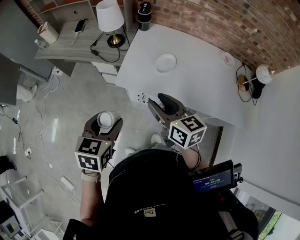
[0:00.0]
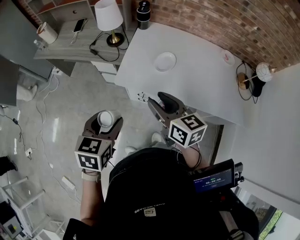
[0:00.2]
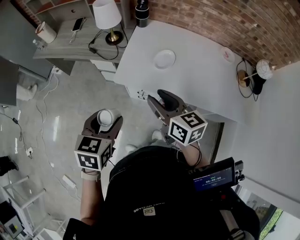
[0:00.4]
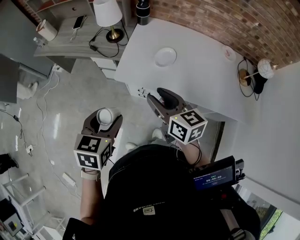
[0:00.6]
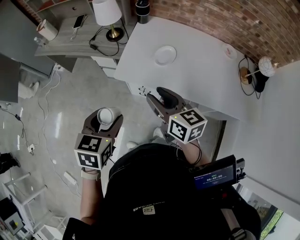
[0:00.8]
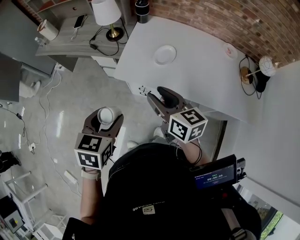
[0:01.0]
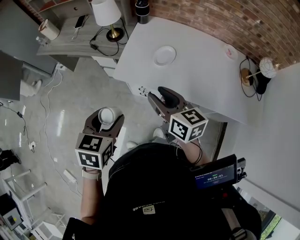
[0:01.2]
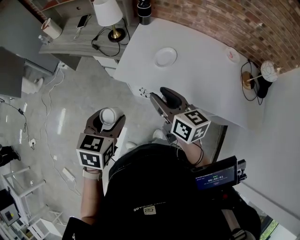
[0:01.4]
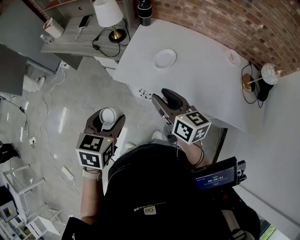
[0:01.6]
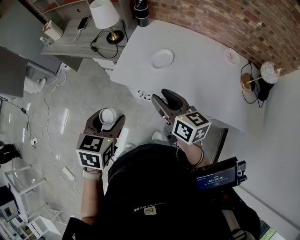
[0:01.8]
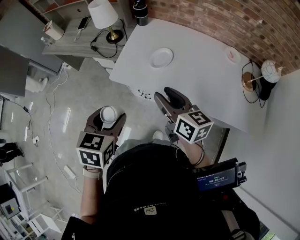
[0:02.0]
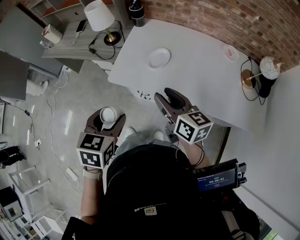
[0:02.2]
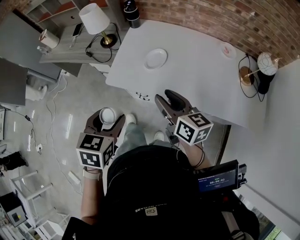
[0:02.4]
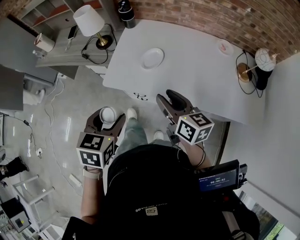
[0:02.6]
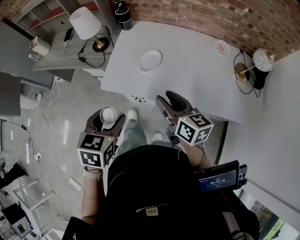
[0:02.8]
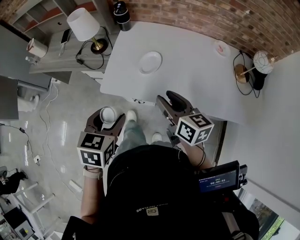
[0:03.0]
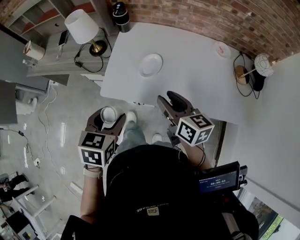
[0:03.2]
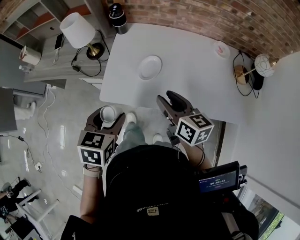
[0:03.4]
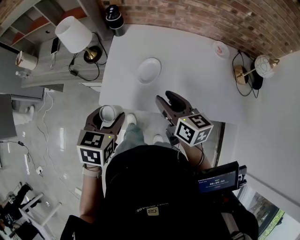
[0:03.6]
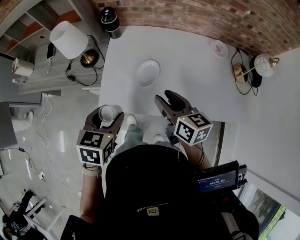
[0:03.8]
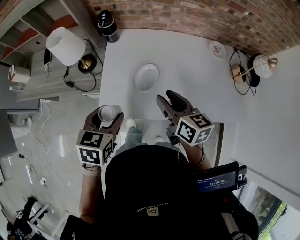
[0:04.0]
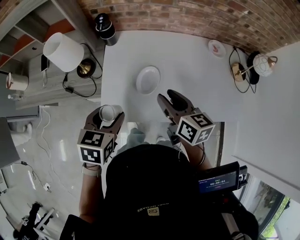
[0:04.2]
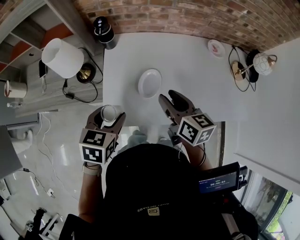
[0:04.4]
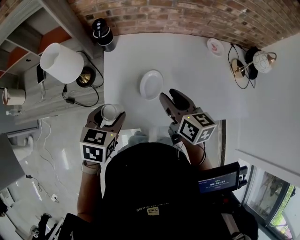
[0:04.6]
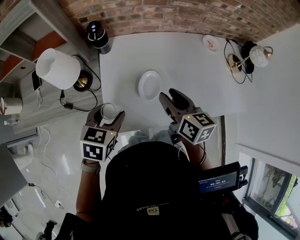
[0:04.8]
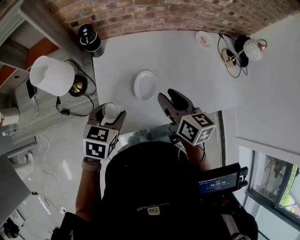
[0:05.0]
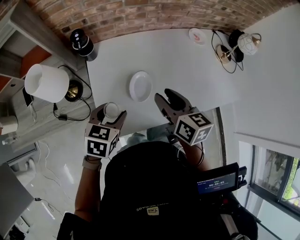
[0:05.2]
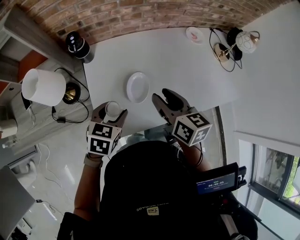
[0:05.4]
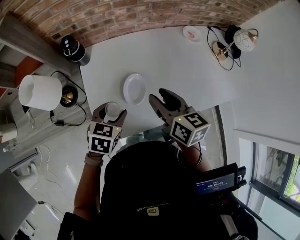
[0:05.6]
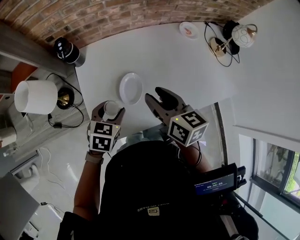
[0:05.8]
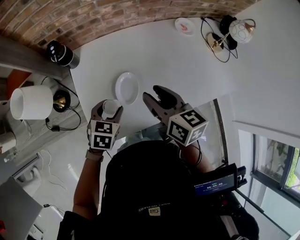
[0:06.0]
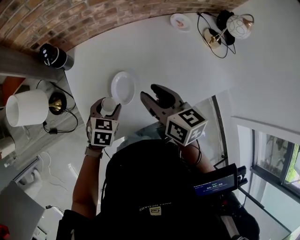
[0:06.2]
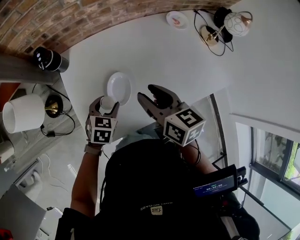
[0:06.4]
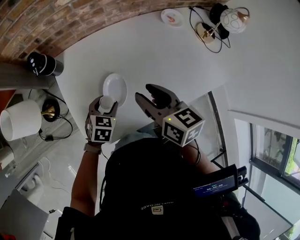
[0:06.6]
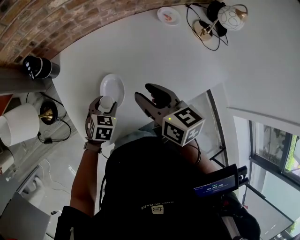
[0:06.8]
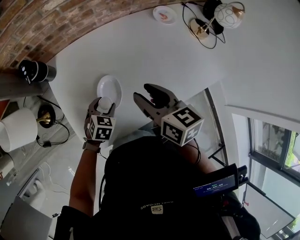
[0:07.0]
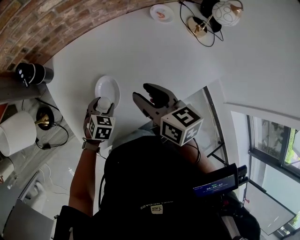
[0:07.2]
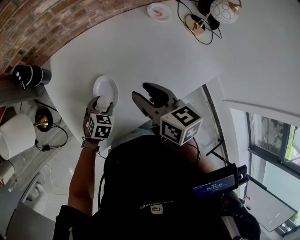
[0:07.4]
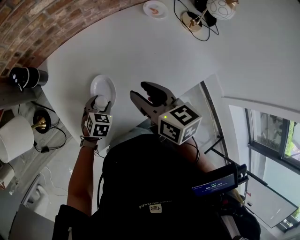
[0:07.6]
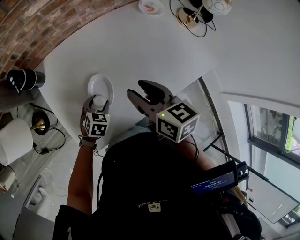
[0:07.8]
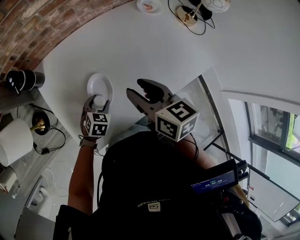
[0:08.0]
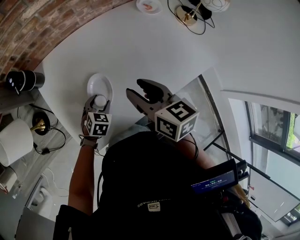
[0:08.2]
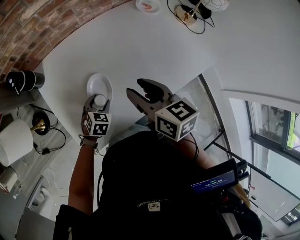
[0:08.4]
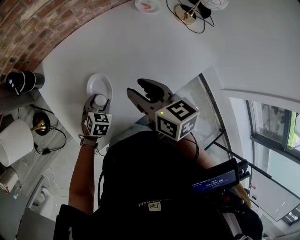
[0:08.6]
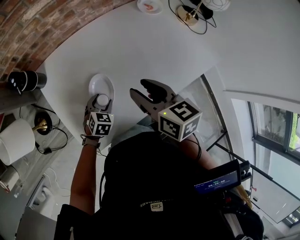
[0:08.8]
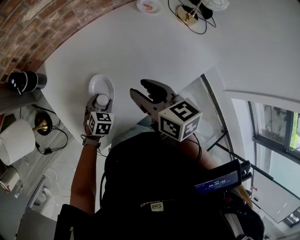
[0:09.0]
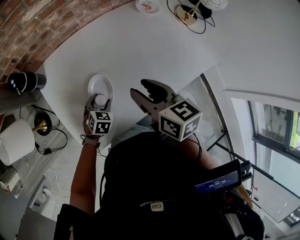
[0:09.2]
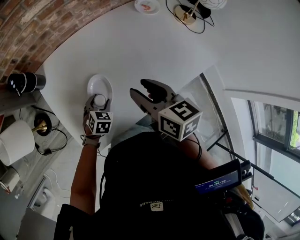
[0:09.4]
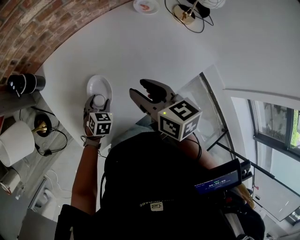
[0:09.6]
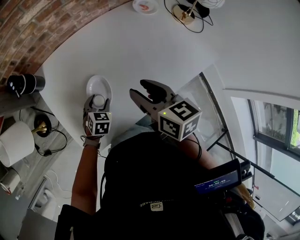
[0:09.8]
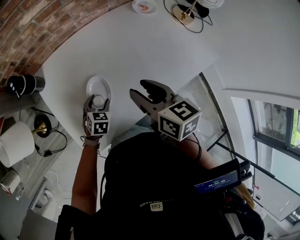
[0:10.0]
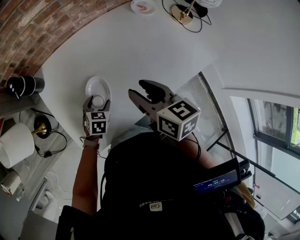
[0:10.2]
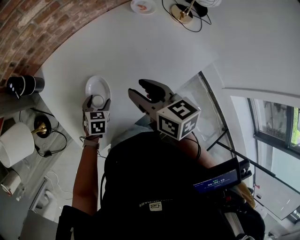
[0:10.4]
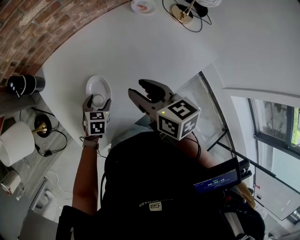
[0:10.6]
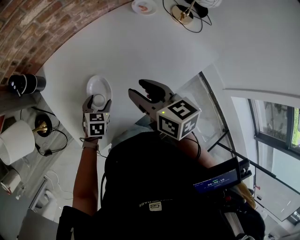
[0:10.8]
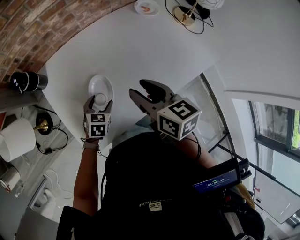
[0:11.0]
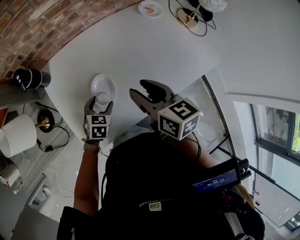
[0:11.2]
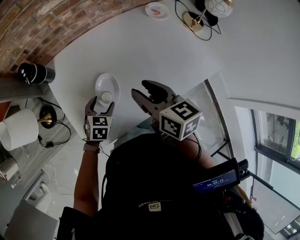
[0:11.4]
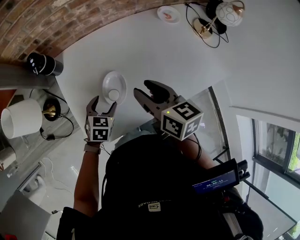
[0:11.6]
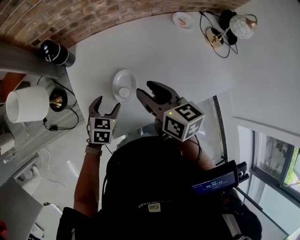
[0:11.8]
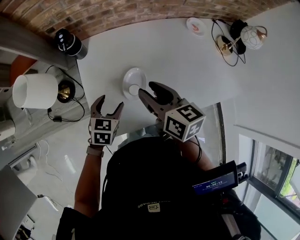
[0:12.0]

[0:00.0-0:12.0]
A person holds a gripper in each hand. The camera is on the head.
0:00.0 to 0:01.6: Both grippers travel together to the right, roughly 5 cm.
0:01.6 to 0:03.0: The right gripper moves to the right, some 10 cm, while the left gripper heads forward and to the right, covering approximately 10 cm.
0:03.0 to 0:04.4: The grippers both shift forward by roughly 15 cm.
0:04.4 to 0:06.0: The left gripper shifts about 15 cm downward, forward and to the right, and rotates about 20 degrees.
0:06.0 to 0:07.6: The left gripper moves downward, some 15 cm; the right gripper changes place by roughly 5 cm.
0:07.6 to 0:10.4: There are only small adjustments of the grippers.
0:10.4 to 0:12.0: The left gripper moves upward and to the left, approximately 15 cm. The right gripper goes approximately 10 cm to the left.

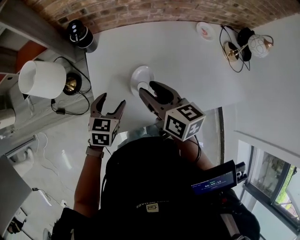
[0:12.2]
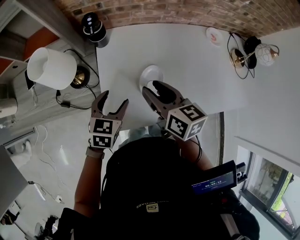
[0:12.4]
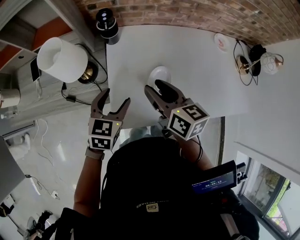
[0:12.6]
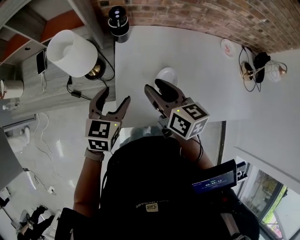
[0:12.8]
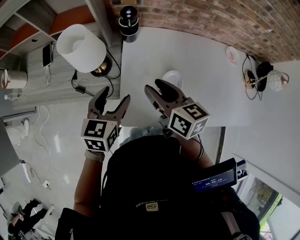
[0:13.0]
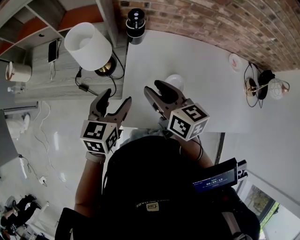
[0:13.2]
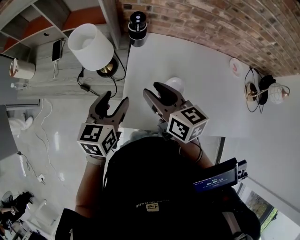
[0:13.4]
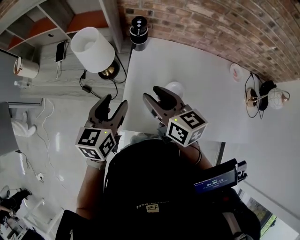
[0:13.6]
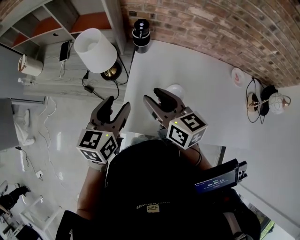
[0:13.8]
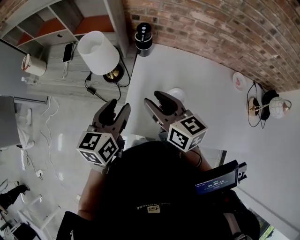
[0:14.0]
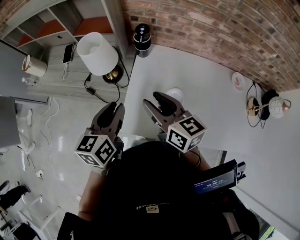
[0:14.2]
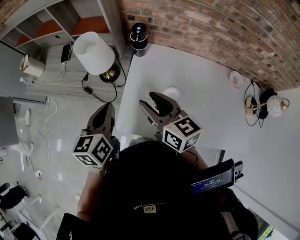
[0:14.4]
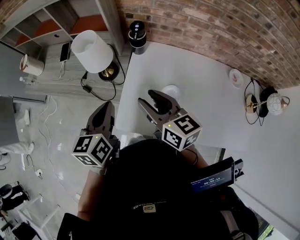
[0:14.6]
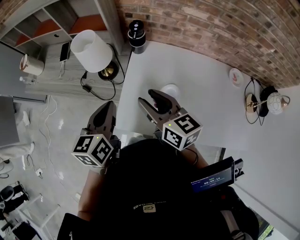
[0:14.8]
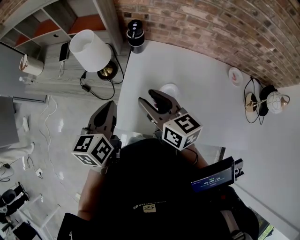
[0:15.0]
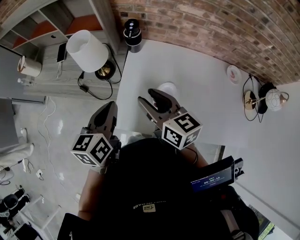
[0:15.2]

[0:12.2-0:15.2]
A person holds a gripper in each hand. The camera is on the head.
0:12.2 to 0:13.8: The right gripper shifts approximately 15 cm to the left and upward, and swivels some 30 degrees. Meanwhile the left gripper goes some 20 cm upward and to the left, and swivels roughly 40 degrees.
0:13.8 to 0:15.2: The left gripper closes its fingers.

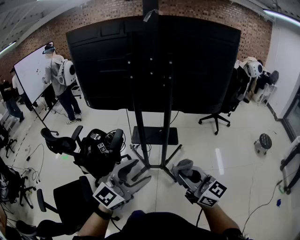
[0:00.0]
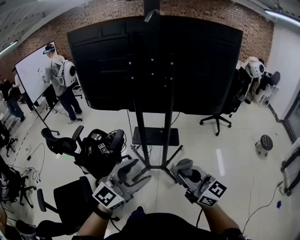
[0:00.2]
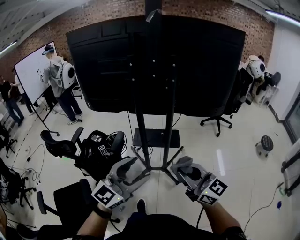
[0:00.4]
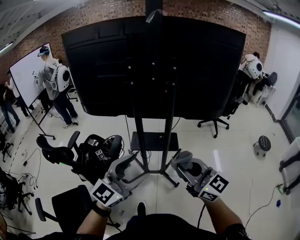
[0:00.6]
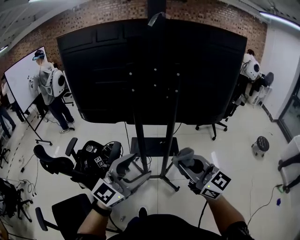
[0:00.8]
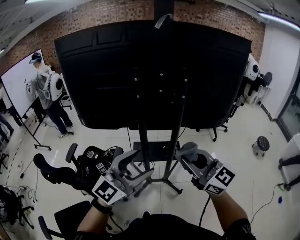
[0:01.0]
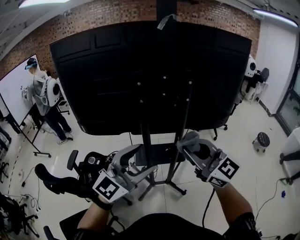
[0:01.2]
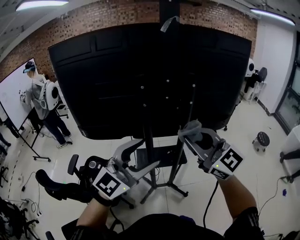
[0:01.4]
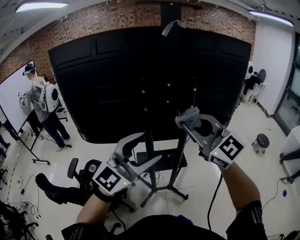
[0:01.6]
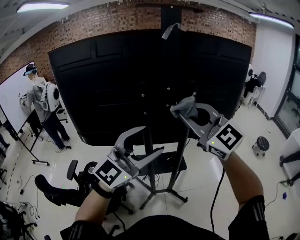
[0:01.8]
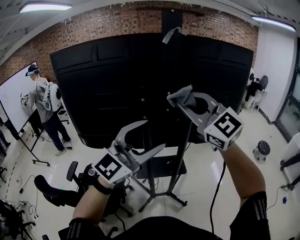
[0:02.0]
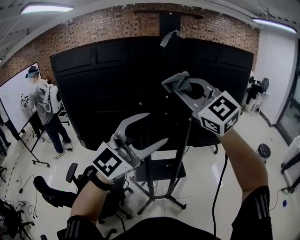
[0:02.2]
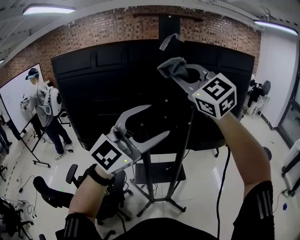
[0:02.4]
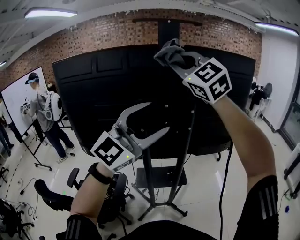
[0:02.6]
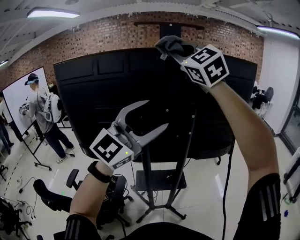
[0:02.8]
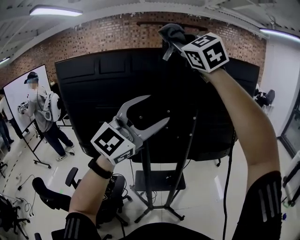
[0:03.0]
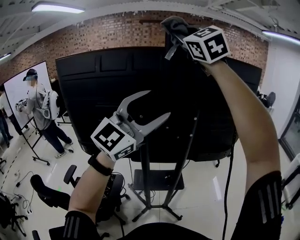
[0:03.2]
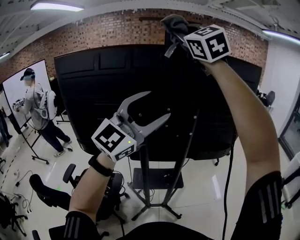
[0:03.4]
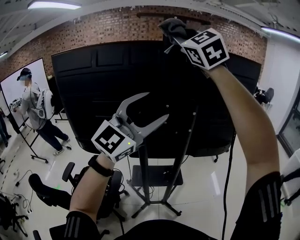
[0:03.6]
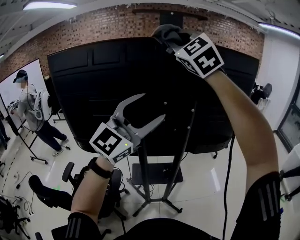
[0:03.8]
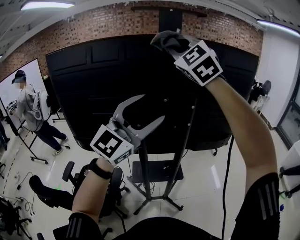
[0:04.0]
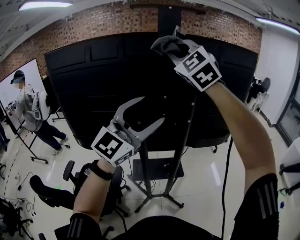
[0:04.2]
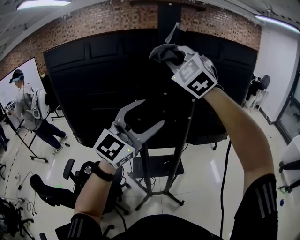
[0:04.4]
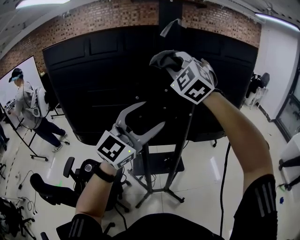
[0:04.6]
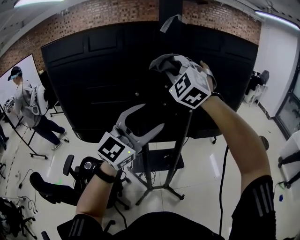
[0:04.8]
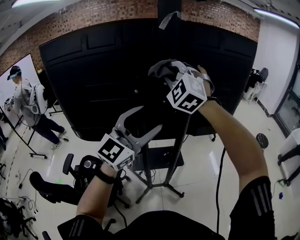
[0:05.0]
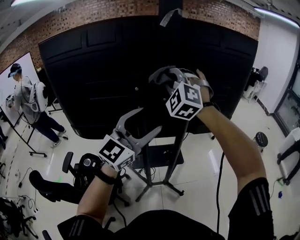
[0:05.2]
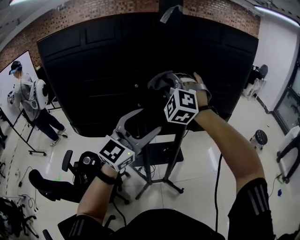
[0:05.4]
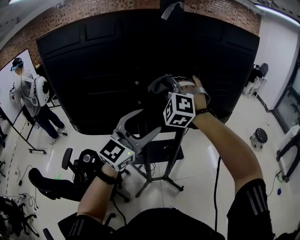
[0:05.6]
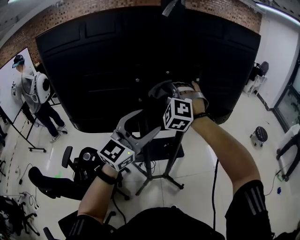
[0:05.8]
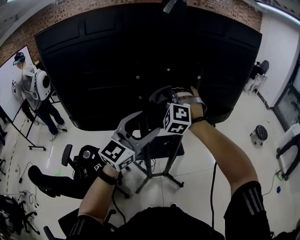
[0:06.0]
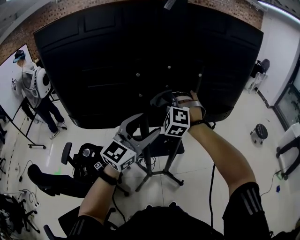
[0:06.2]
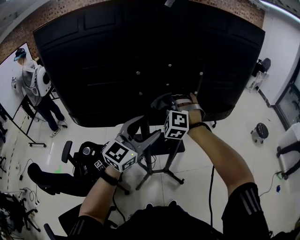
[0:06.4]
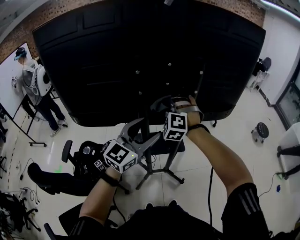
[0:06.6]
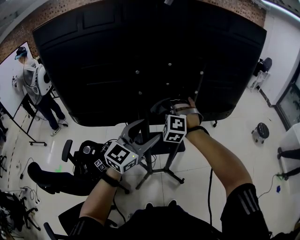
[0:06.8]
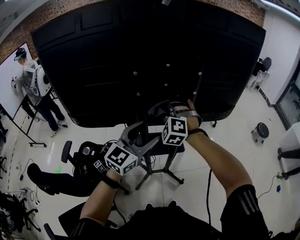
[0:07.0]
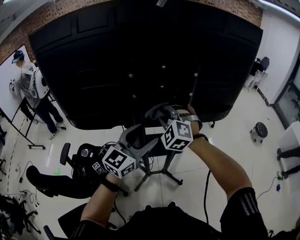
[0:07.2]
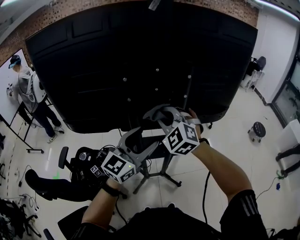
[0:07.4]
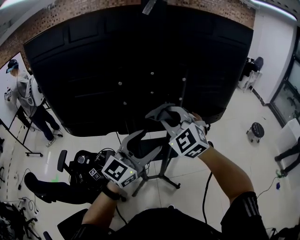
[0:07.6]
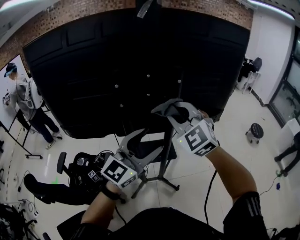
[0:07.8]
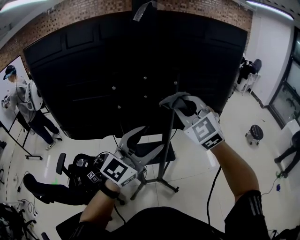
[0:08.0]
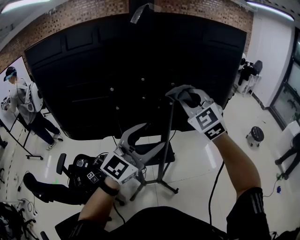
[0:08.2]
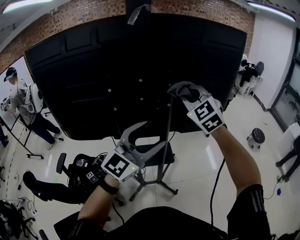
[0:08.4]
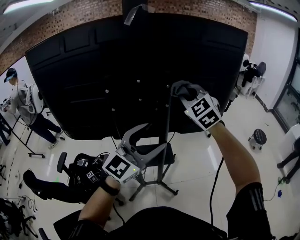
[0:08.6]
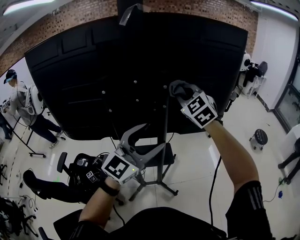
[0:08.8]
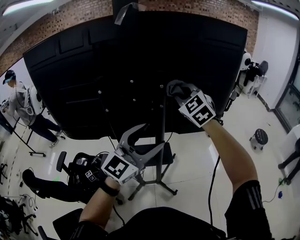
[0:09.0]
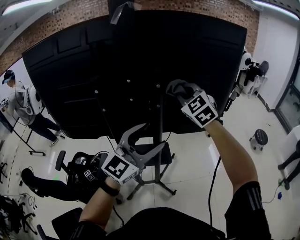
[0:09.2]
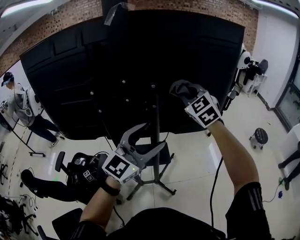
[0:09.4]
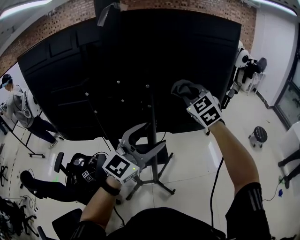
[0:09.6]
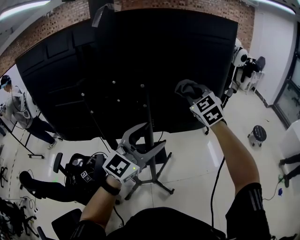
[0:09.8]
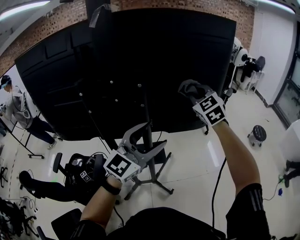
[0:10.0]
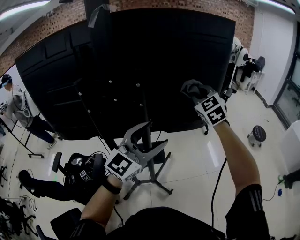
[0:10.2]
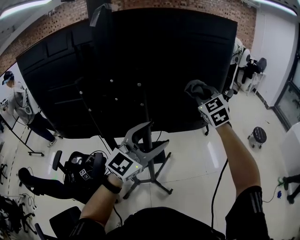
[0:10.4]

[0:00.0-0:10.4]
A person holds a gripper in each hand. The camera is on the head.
0:00.0 to 0:01.4: The grippers both shift forward, upward and to the left by about 30 cm. The left gripper swivels roughly 20 degrees, while the right gripper rotates some 30 degrees.
0:01.4 to 0:03.0: The left gripper moves upward and forward, roughly 25 cm. Meanwhile the right gripper is displaced upward and forward by approximately 40 cm, and turns by approximately 30 degrees.
0:03.0 to 0:04.4: The left gripper is displaced downward by roughly 10 cm. Meanwhile the right gripper is displaced downward by roughly 15 cm.
0:04.4 to 0:06.0: The right gripper moves downward, roughly 30 cm, and changes its angle by roughly 30 degrees; the left gripper travels downward by approximately 15 cm.
0:06.0 to 0:07.4: The left gripper goes some 5 cm downward; the right gripper moves backward, roughly 5 cm, moves about 10 cm downward and comes back, and rotates roughly 30 degrees.
0:07.4 to 0:09.0: The left gripper moves to the right and upward, approximately 15 cm. Meanwhile the right gripper goes some 20 cm to the right, forward and upward.
0:09.0 to 0:10.4: The left gripper moves to the right, approximately 10 cm, while the right gripper is displaced to the right by some 15 cm.
